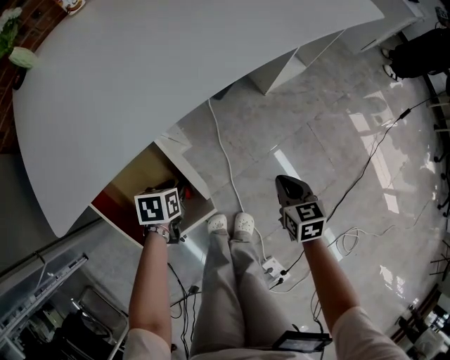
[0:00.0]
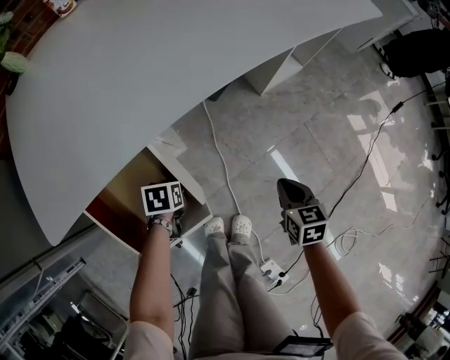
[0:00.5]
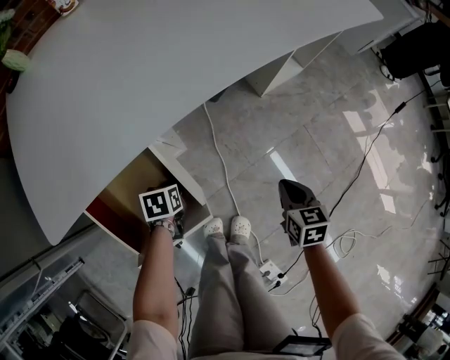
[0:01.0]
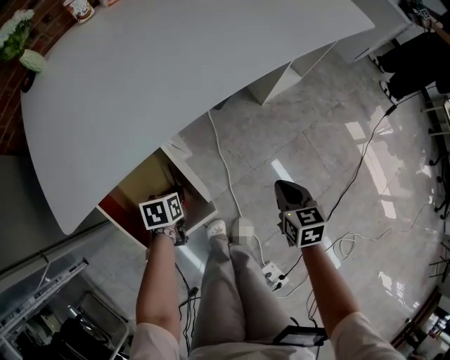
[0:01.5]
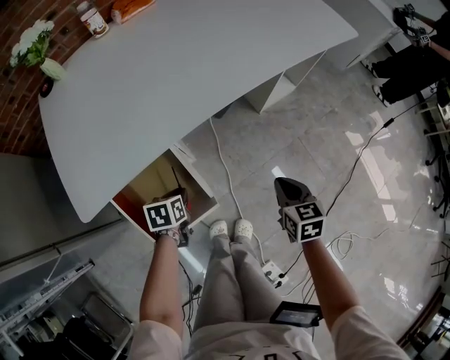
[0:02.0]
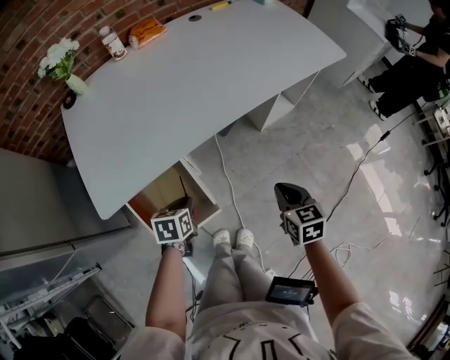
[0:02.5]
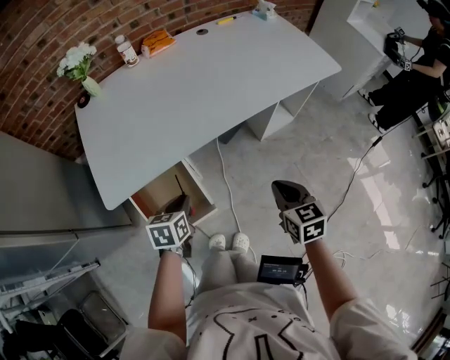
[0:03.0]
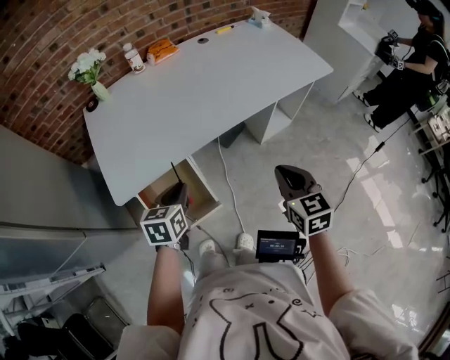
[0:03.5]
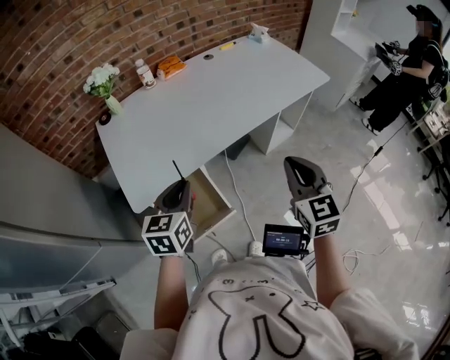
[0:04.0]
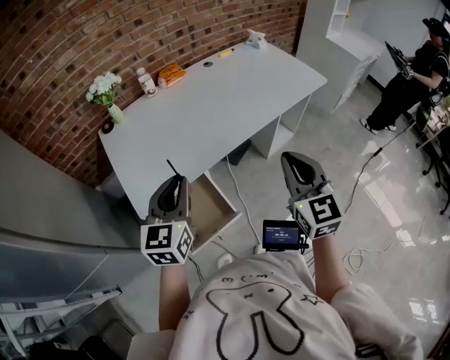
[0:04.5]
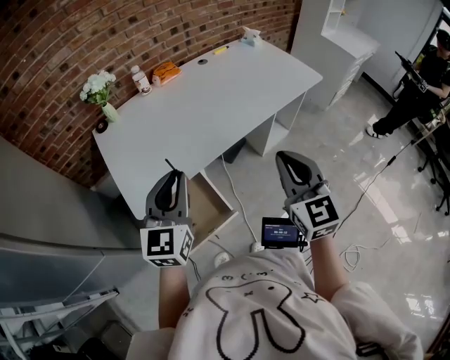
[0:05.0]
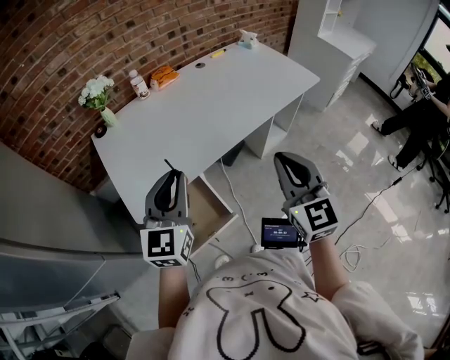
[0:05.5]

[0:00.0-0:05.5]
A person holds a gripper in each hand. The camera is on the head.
0:00.0 to 0:02.0: The grippers both shift upward by about 10 cm.
0:02.0 to 0:03.5: Both grippers travel together upward, some 25 cm. The right gripper swivels about 20 degrees. The left gripper turns by some 30 degrees.
0:03.5 to 0:05.5: The left gripper shifts about 20 cm upward, and tips its fingers upward by approximately 30 degrees. The right gripper travels upward and to the left by approximately 15 cm, and rotates approximately 30 degrees.

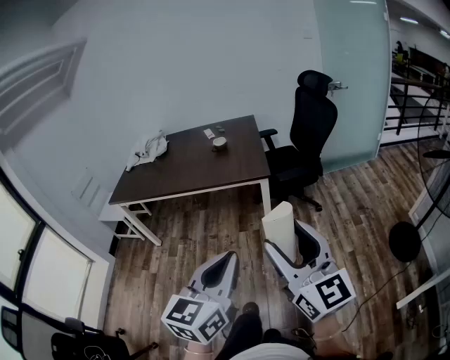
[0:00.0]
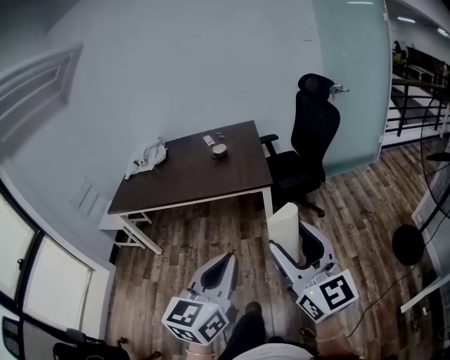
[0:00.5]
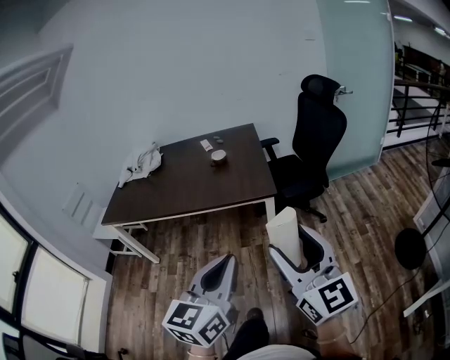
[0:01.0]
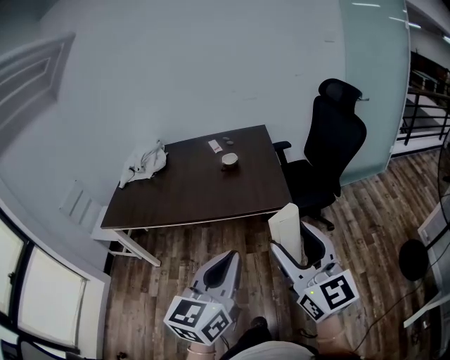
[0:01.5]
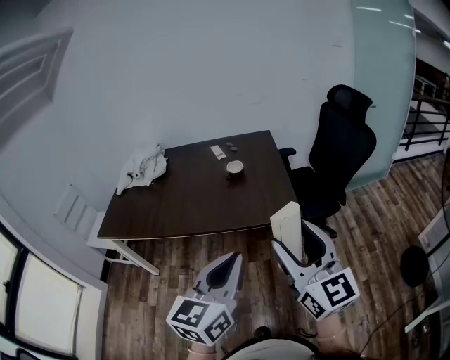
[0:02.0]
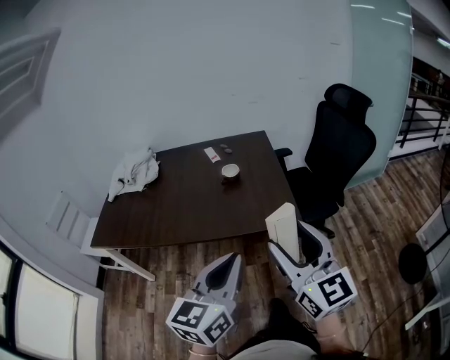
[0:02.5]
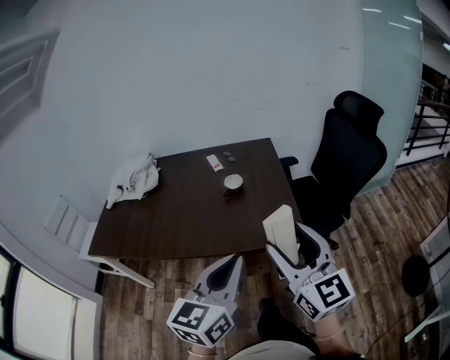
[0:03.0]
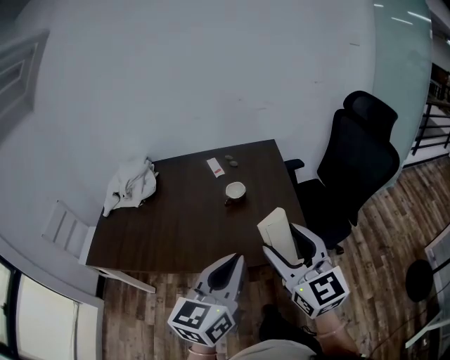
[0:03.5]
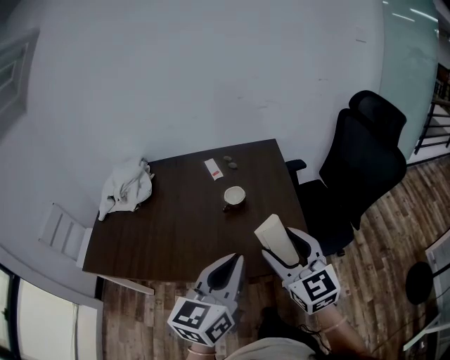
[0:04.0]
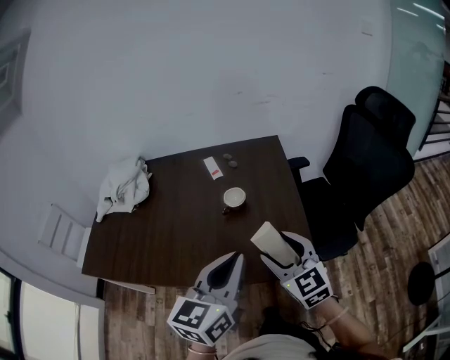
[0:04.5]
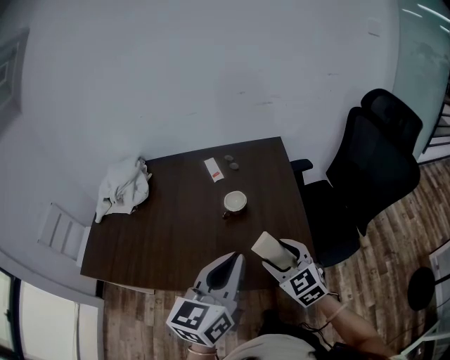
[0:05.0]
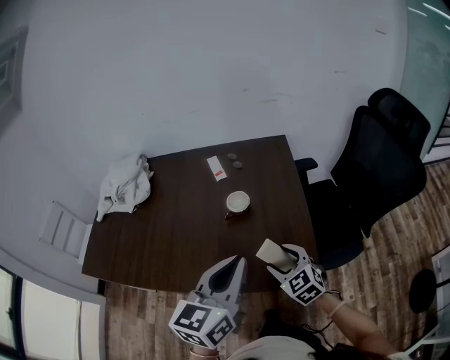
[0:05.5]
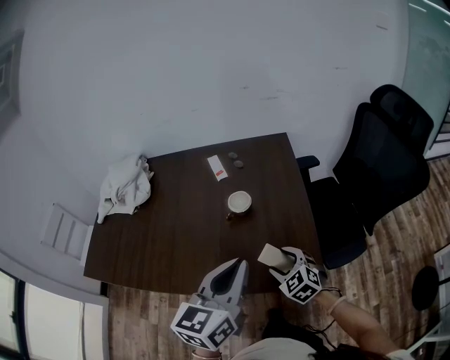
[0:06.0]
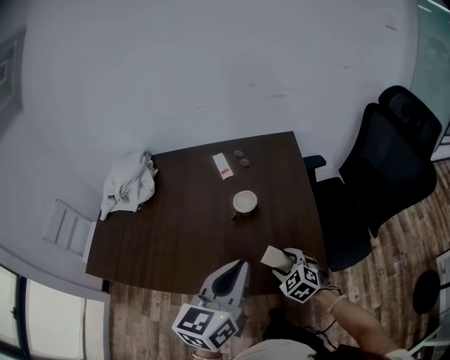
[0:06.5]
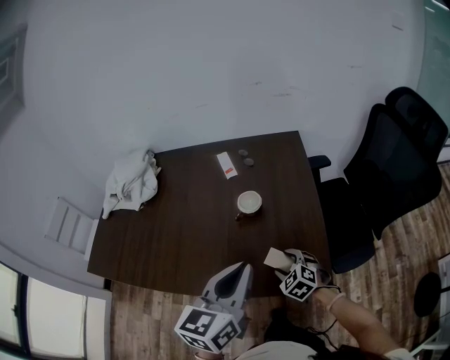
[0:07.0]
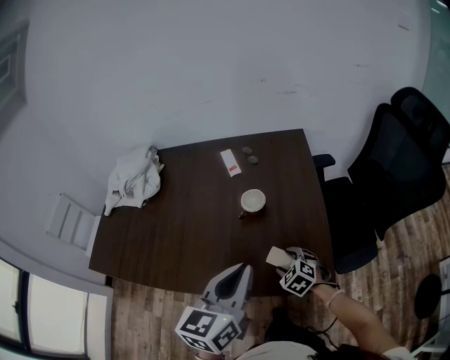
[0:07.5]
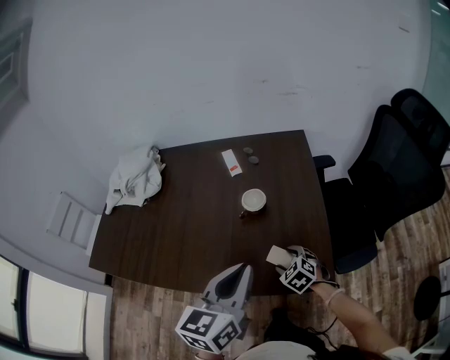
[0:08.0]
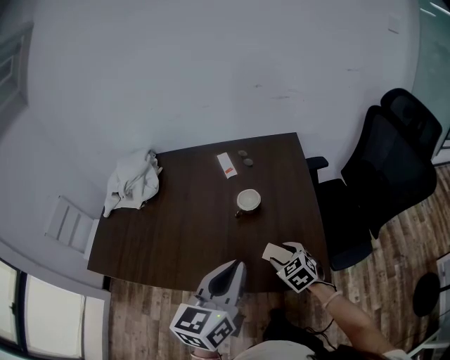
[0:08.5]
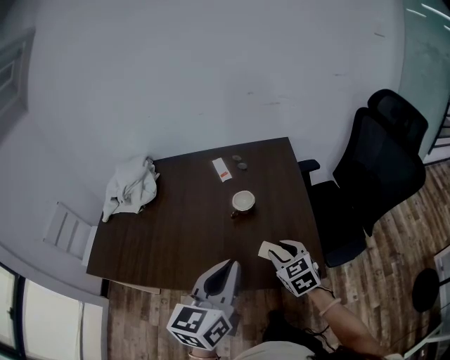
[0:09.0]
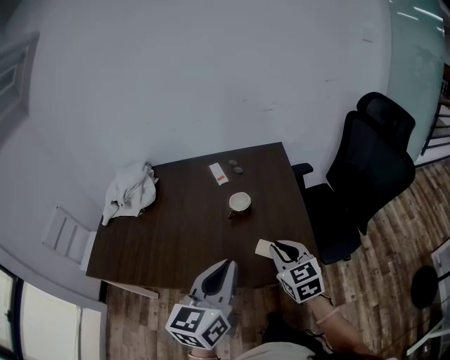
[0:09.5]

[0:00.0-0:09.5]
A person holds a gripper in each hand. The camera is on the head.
0:00.0 to 0:02.0: The pair of grippers is taken forward and to the left, approximately 40 cm.
0:02.0 to 0:04.0: Both grippers move forward, about 35 cm.
0:04.0 to 0:05.5: The left gripper moves forward, roughly 10 cm, while the right gripper goes roughly 20 cm downward and forward, and turns by roughly 30 degrees.
0:05.5 to 0:07.5: The left gripper moves some 5 cm. The right gripper travels downward by some 15 cm, and rotates approximately 20 degrees.
0:07.5 to 0:09.5: The right gripper heads upward and backward, covering some 25 cm, tips its fingers upward by roughly 30 degrees, and closes its fingers, while the left gripper goes some 10 cm backward.

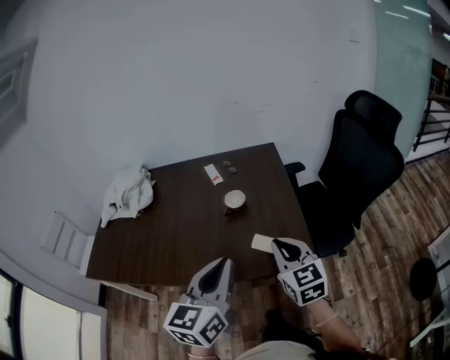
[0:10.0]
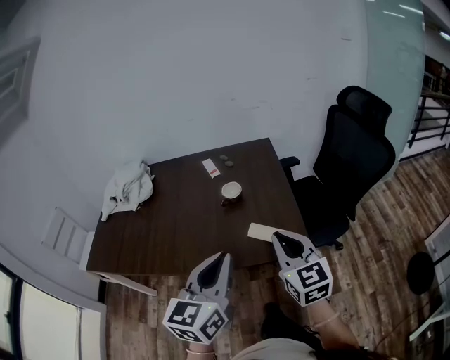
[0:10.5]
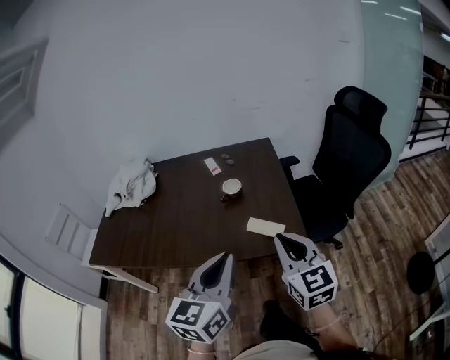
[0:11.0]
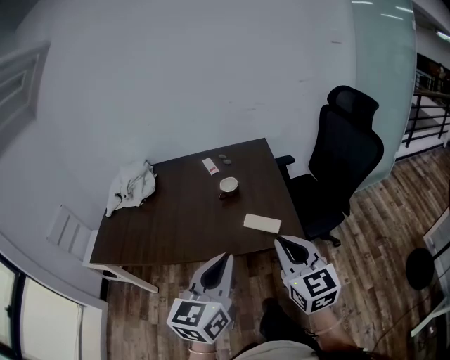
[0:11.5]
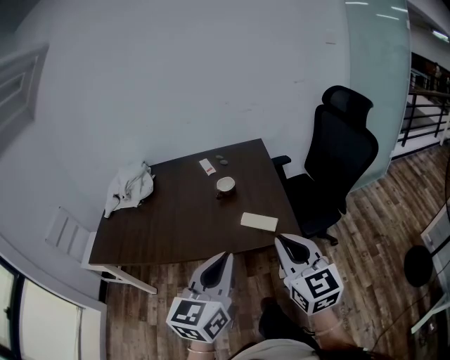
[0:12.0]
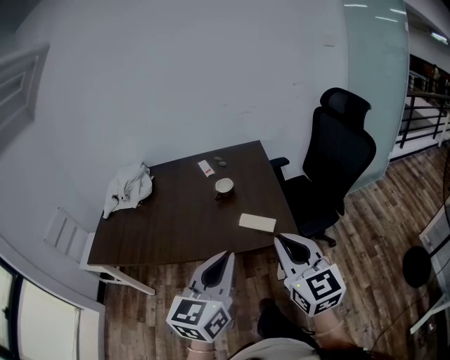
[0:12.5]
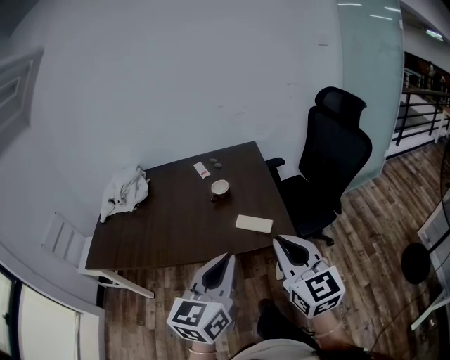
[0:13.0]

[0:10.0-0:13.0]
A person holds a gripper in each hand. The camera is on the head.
0:10.0 to 0:11.5: Both grippers move backward, roughly 15 cm.
0:11.5 to 0:13.0: The grippers move only a little.

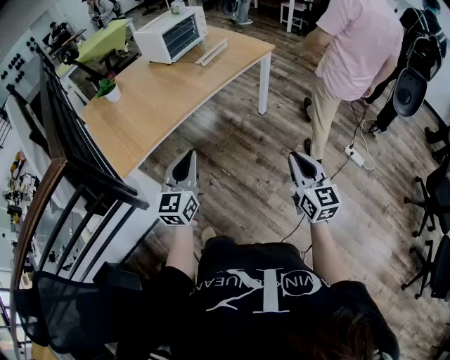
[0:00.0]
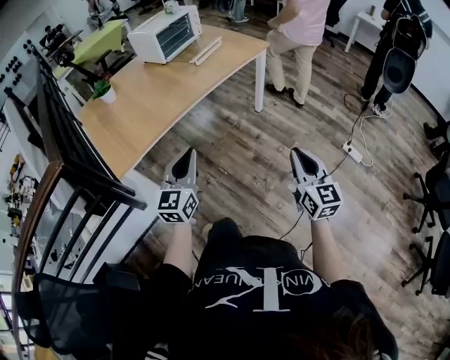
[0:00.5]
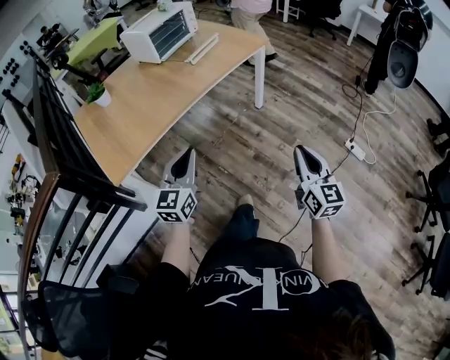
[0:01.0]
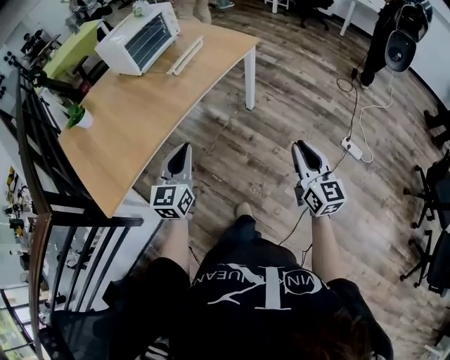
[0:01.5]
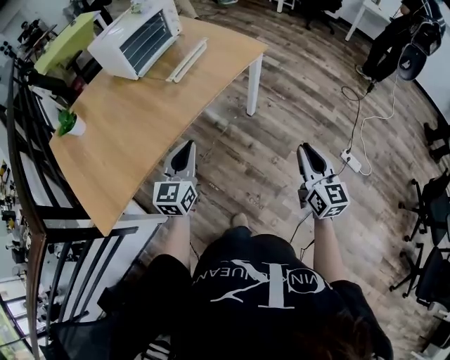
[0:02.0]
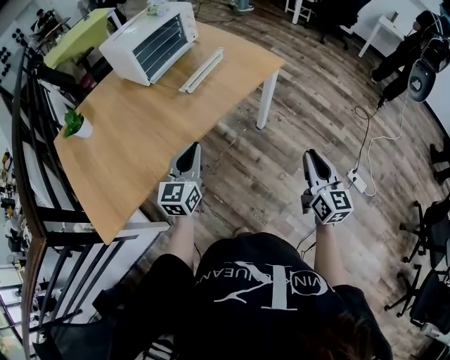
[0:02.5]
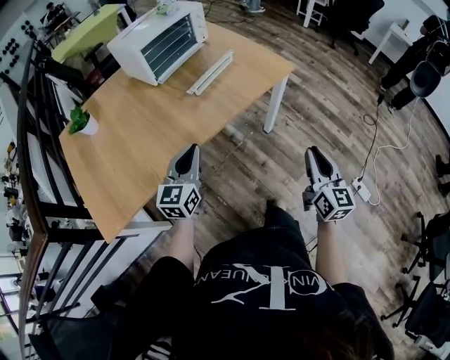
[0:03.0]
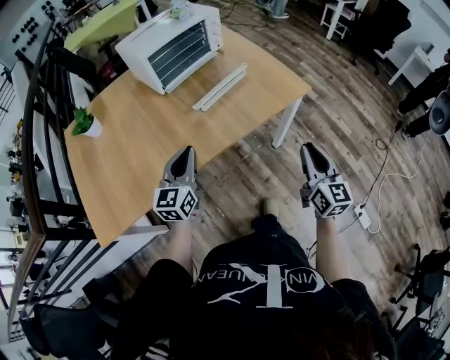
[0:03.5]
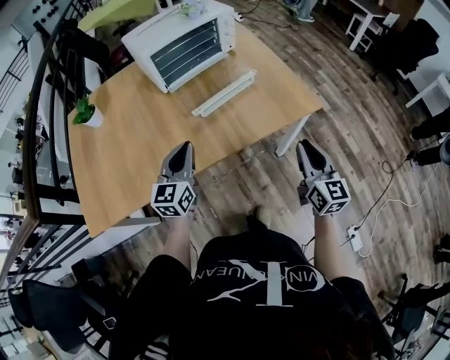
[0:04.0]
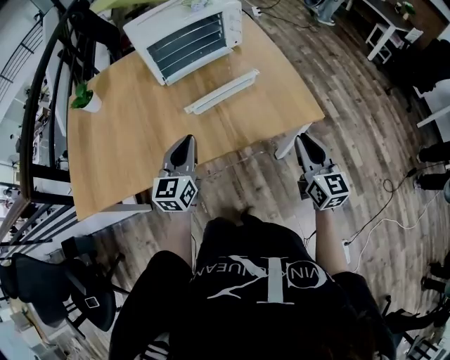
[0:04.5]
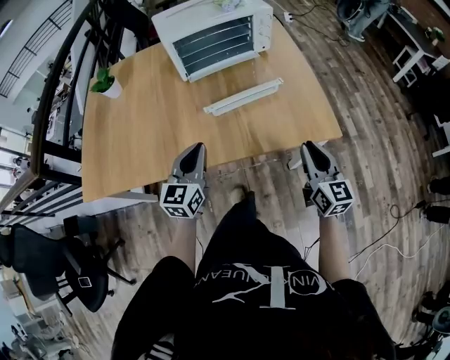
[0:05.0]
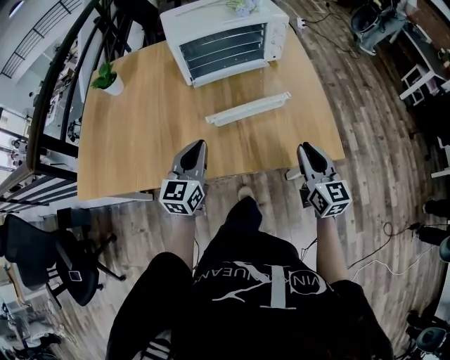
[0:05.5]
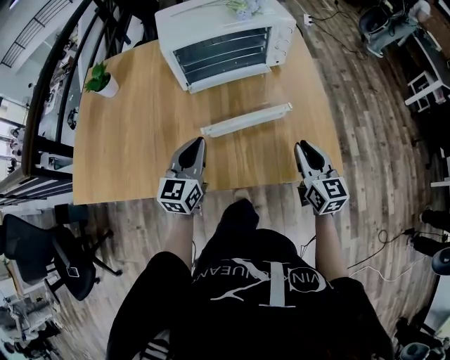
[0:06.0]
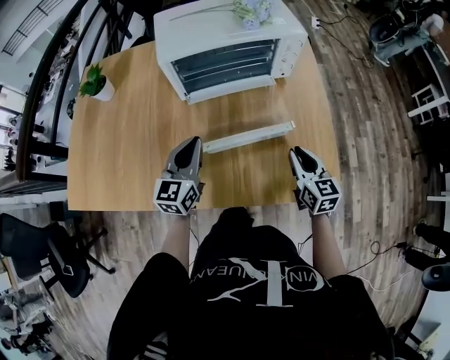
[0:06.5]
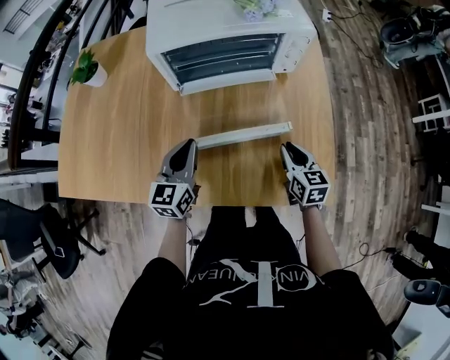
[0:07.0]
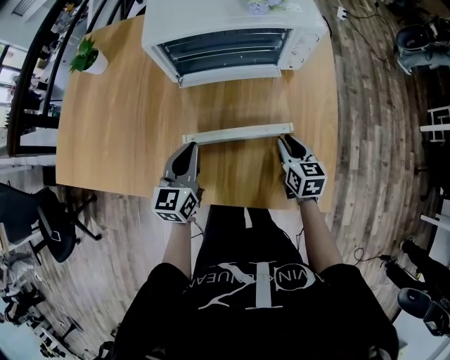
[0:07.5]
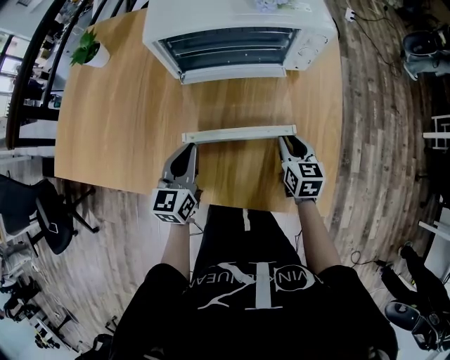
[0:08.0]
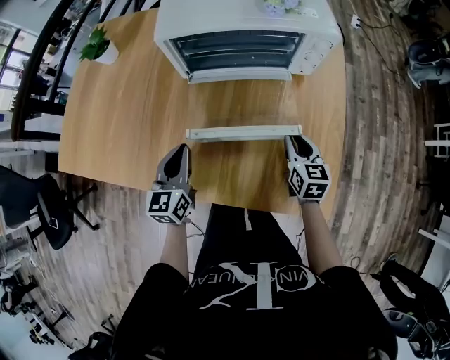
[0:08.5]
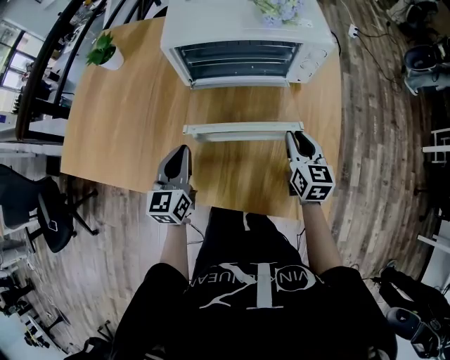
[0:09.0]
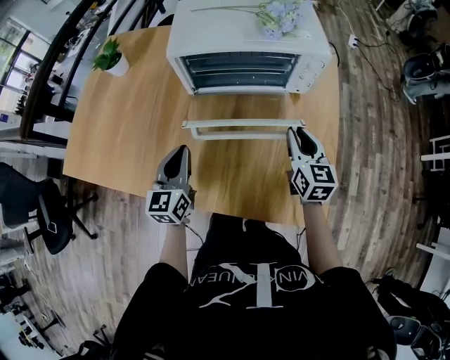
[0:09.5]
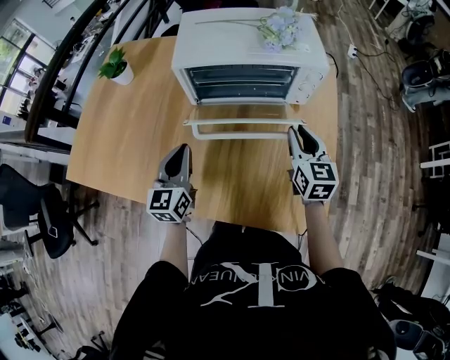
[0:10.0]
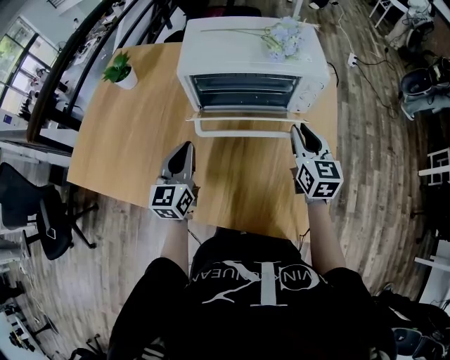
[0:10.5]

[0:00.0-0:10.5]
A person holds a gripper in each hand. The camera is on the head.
0:00.0 to 0:02.0: The grippers both shift forward by about 30 cm.
0:02.0 to 0:04.0: The right gripper heads forward, covering approximately 35 cm, and swivels approximately 20 degrees. Meanwhile the left gripper shifts about 20 cm forward, and swivels approximately 20 degrees.
0:04.0 to 0:06.5: The right gripper is displaced forward by approximately 30 cm, and turns by roughly 30 degrees. Meanwhile the left gripper shifts about 20 cm forward.
0:06.5 to 0:08.5: The left gripper shifts by approximately 5 cm, and turns by some 20 degrees. Meanwhile the right gripper goes roughly 10 cm forward and downward.
0:08.5 to 0:10.5: The right gripper is displaced upward and forward by some 15 cm. The left gripper shifts approximately 10 cm upward and forward.
